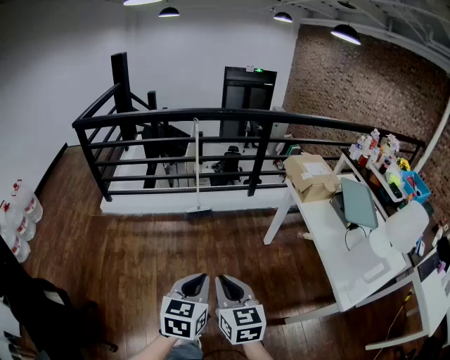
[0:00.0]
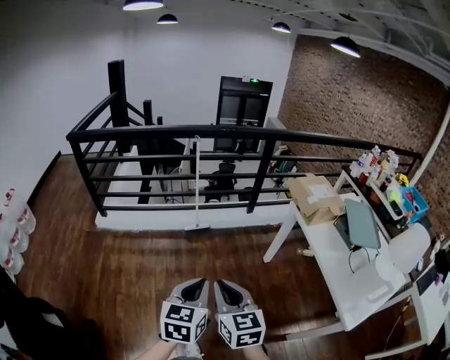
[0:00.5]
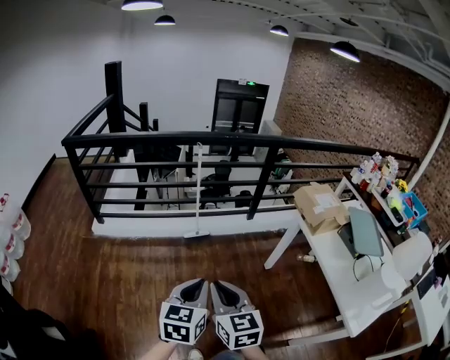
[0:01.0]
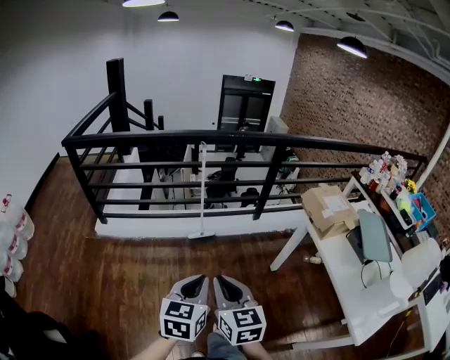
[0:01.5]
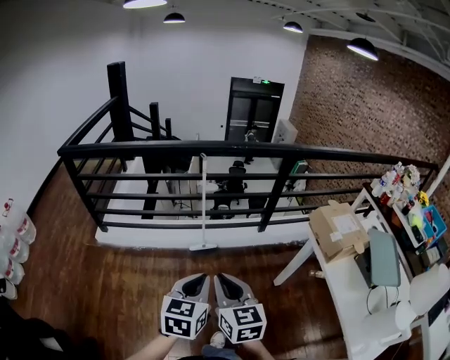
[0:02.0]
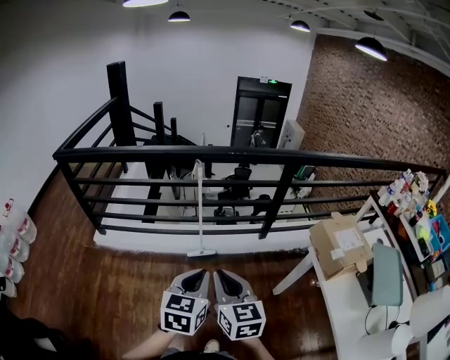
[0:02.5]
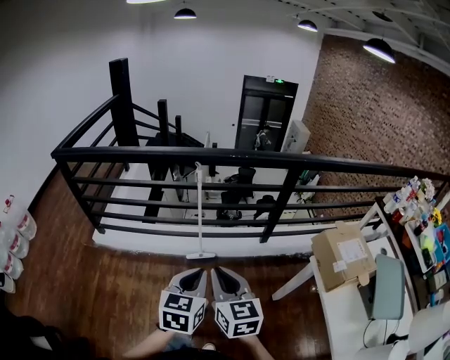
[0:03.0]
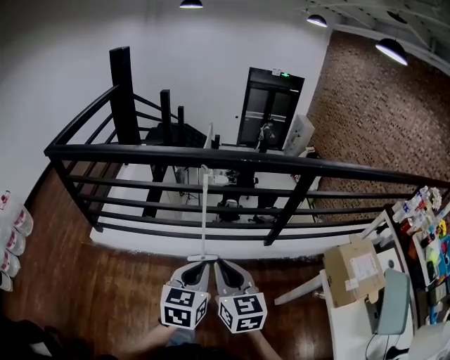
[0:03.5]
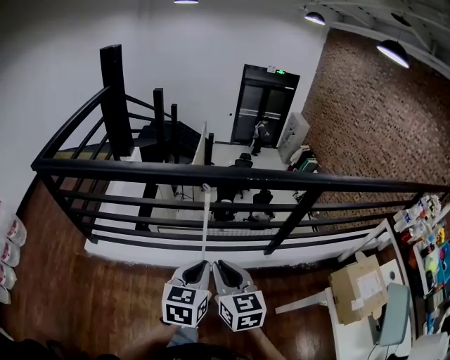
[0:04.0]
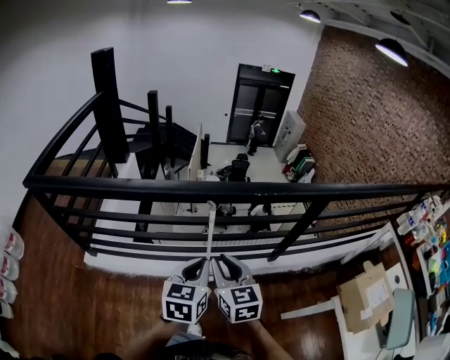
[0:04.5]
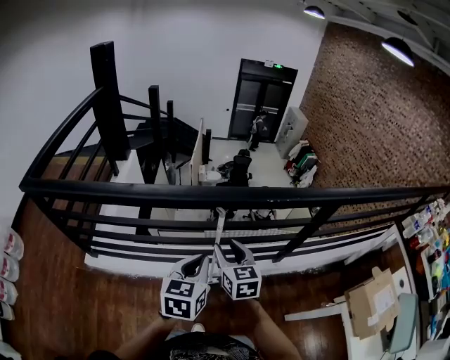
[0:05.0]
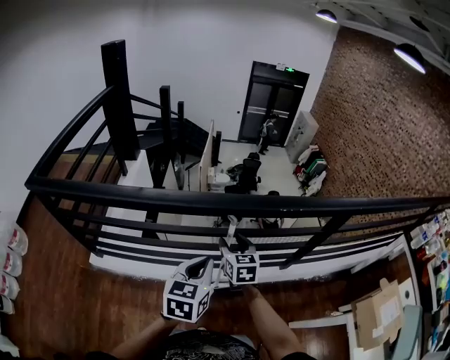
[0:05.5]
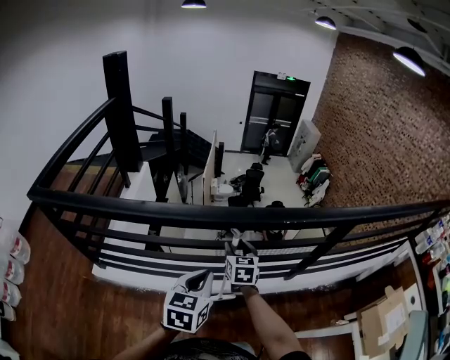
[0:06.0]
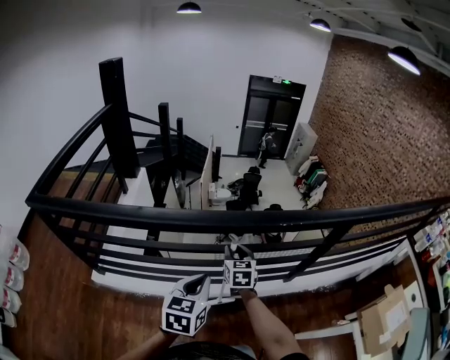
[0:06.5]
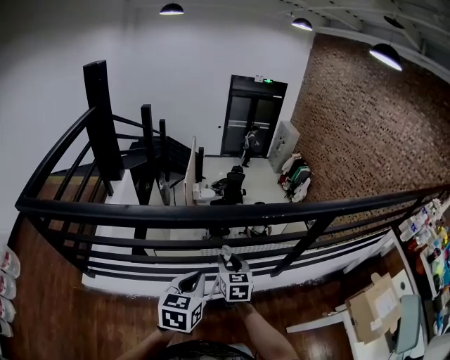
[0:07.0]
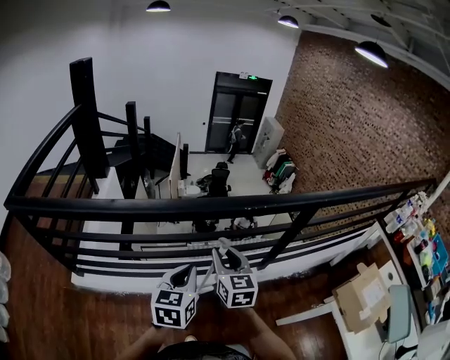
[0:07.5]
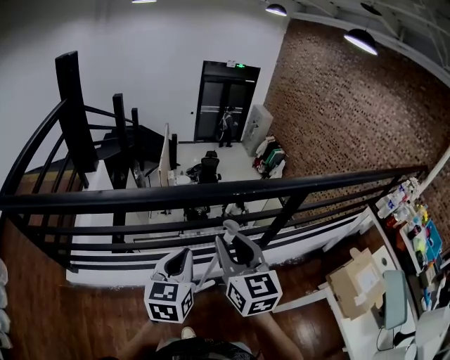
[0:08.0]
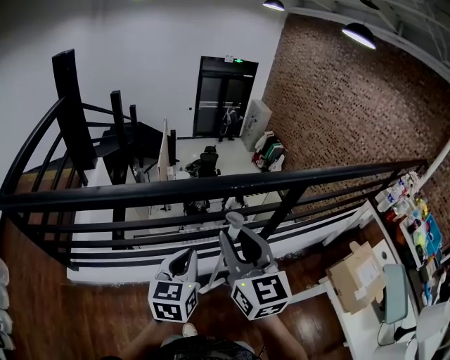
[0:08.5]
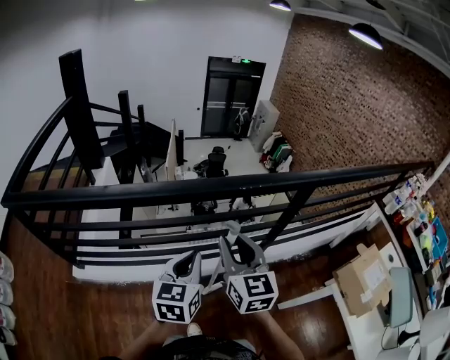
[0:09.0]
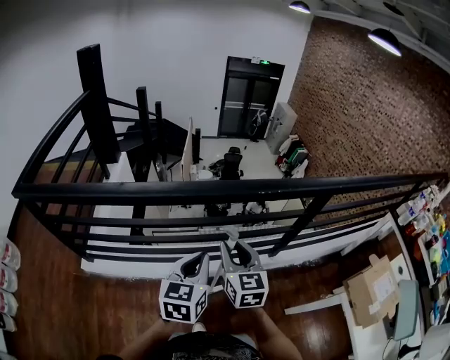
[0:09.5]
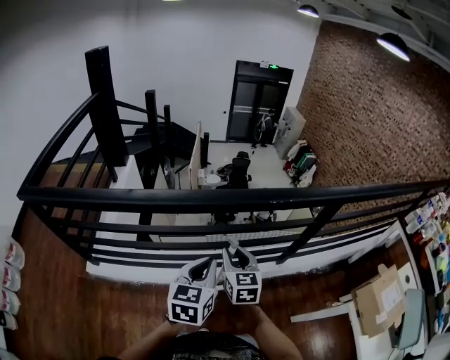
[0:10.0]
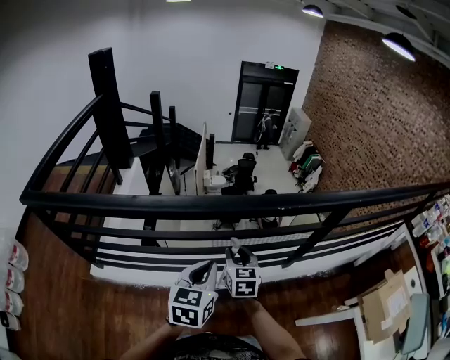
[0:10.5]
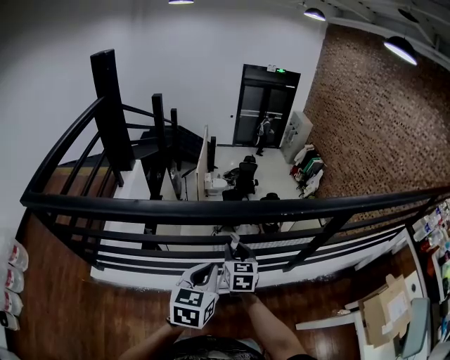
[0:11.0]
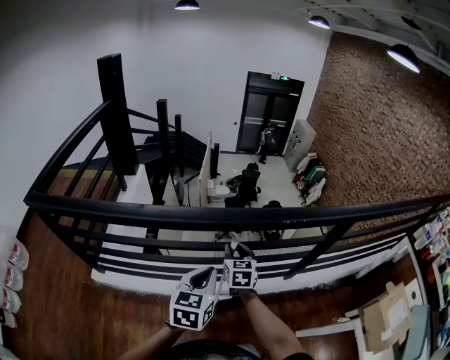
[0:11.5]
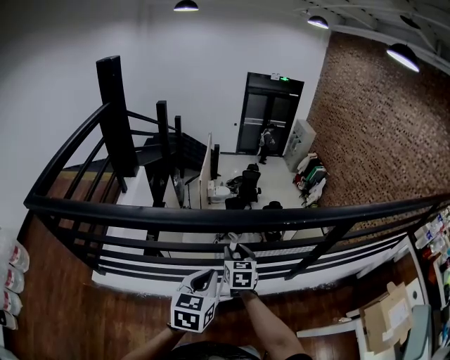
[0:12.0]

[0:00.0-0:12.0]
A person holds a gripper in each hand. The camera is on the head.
0:00.0 to 0:02.0: The grippers both shift forward by about 35 cm.
0:02.0 to 0:04.0: Both grippers move forward, approximately 35 cm.
0:04.0 to 0:06.0: The left gripper heads forward and to the left, covering some 20 cm. Meanwhile the right gripper heads forward and downward, covering about 35 cm, and opens up.
0:06.0 to 0:08.0: The right gripper heads upward and backward, covering some 30 cm, and changes its angle by approximately 20 degrees. Meanwhile the left gripper is displaced upward and to the right by some 10 cm.
0:08.0 to 0:10.0: The right gripper heads downward, covering some 20 cm.
0:10.0 to 0:12.0: The right gripper goes roughly 10 cm forward and downward.

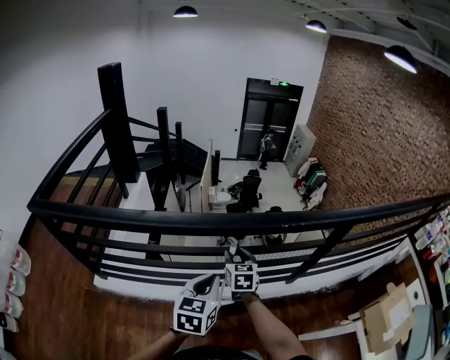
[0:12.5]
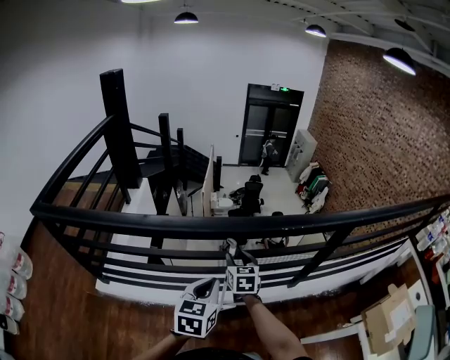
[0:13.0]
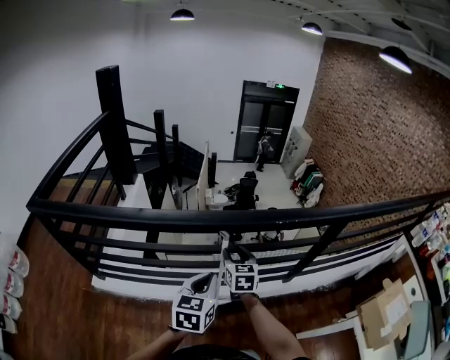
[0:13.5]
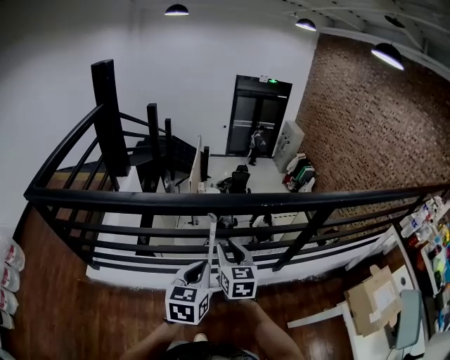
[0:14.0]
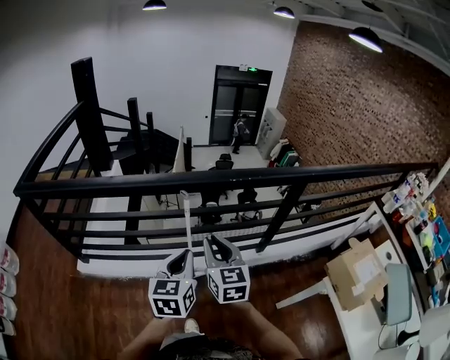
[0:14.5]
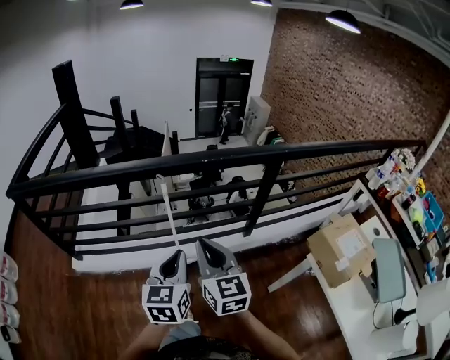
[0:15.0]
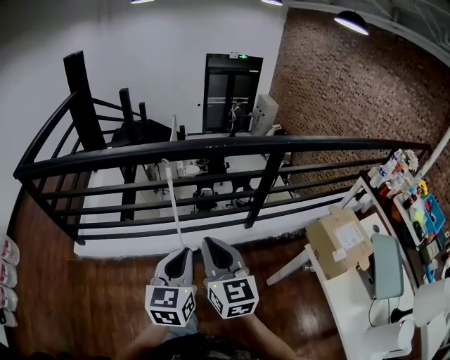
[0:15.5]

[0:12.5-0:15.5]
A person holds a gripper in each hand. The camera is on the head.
0:12.5 to 0:14.0: The right gripper heads backward and upward, covering some 15 cm. Meanwhile the left gripper moves backward, approximately 5 cm.
0:14.0 to 0:15.5: The left gripper goes roughly 25 cm backward and to the right; the right gripper moves backward, some 30 cm, and closes up.

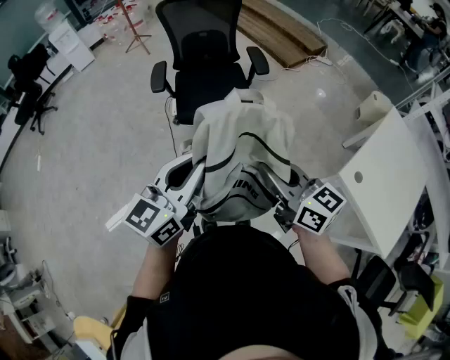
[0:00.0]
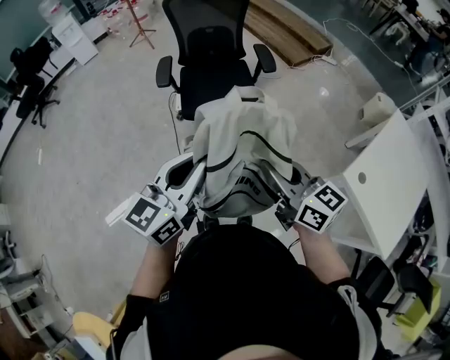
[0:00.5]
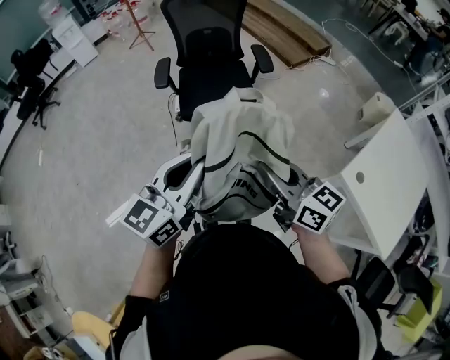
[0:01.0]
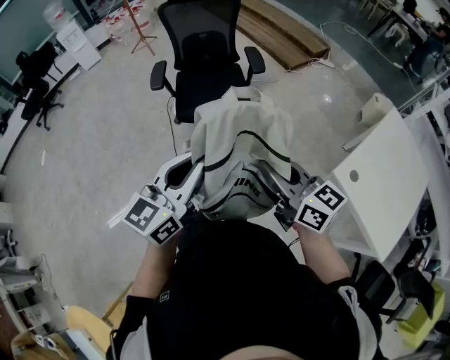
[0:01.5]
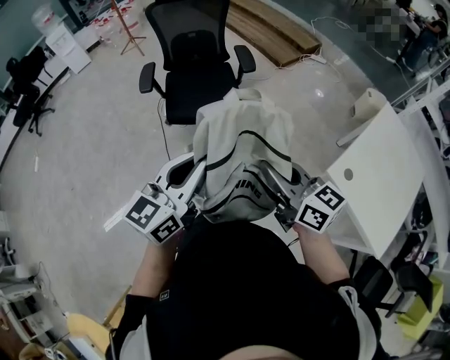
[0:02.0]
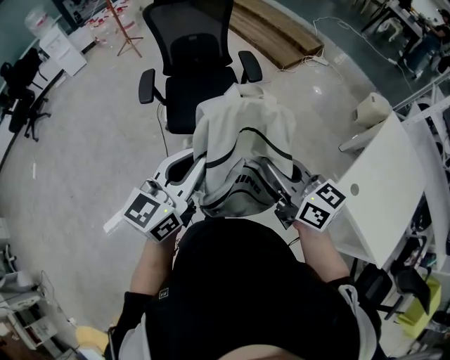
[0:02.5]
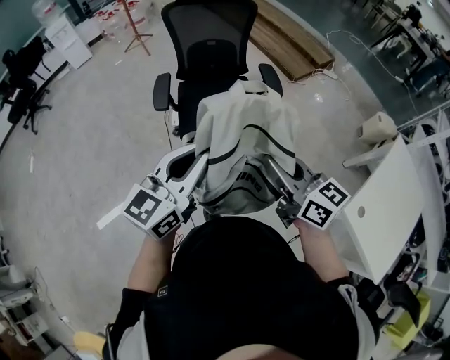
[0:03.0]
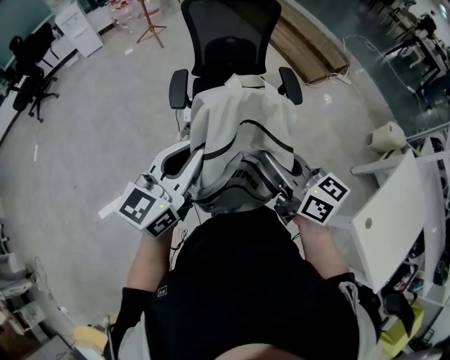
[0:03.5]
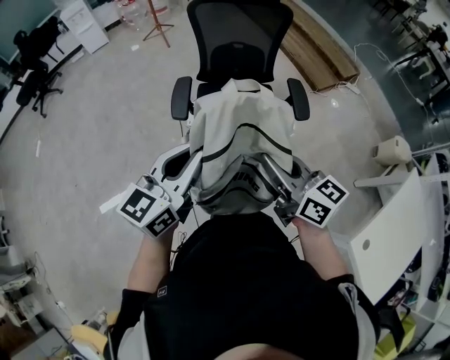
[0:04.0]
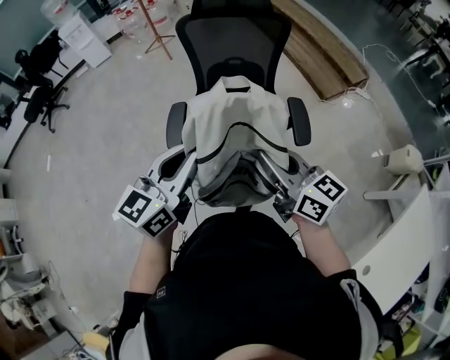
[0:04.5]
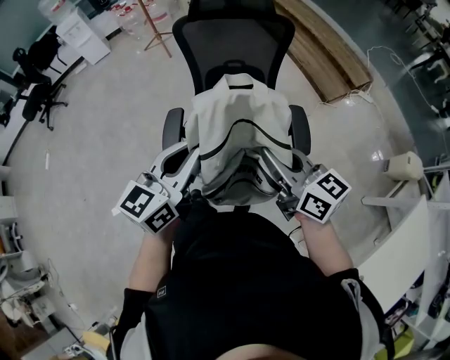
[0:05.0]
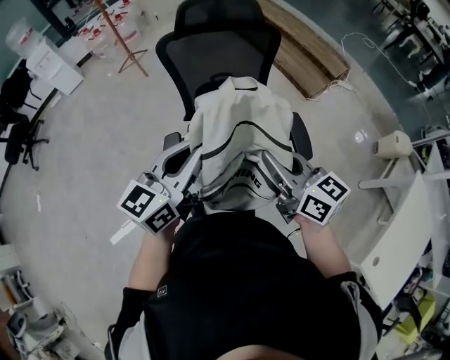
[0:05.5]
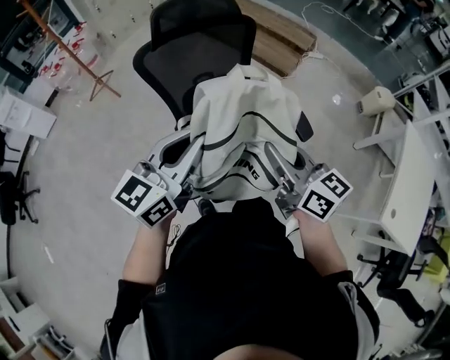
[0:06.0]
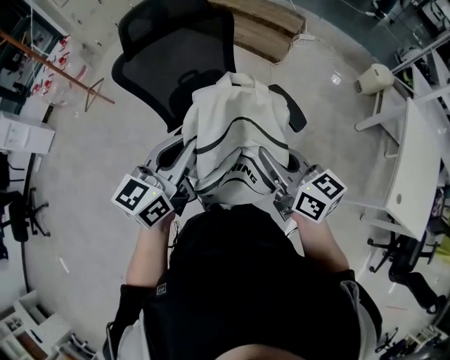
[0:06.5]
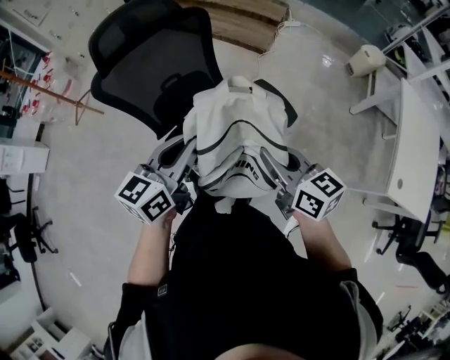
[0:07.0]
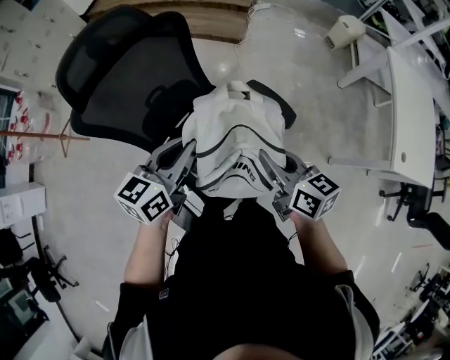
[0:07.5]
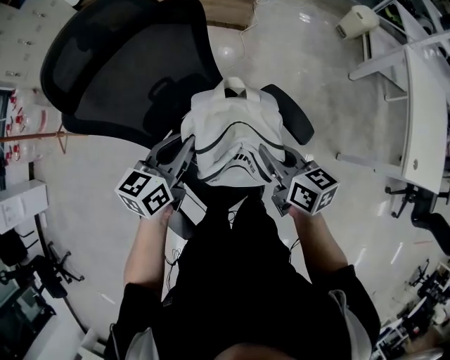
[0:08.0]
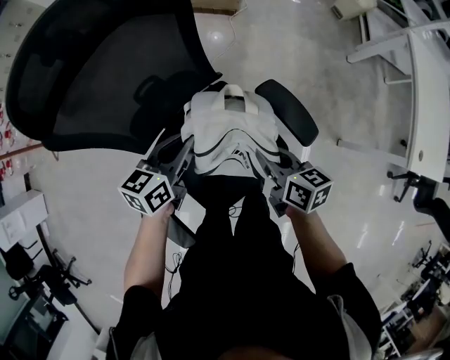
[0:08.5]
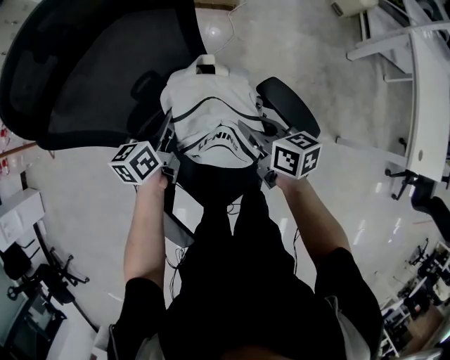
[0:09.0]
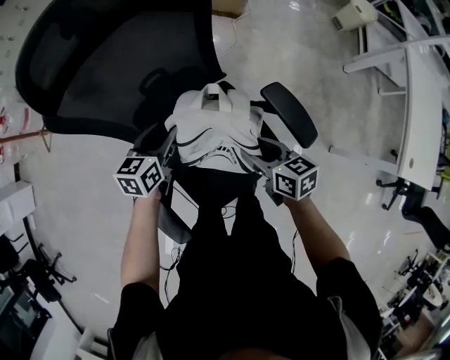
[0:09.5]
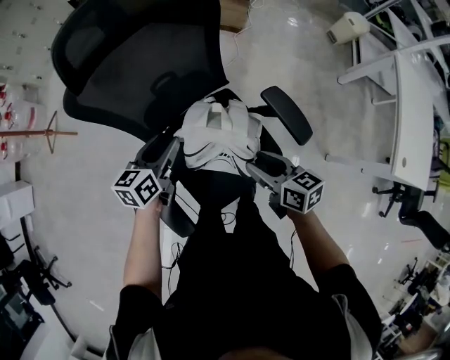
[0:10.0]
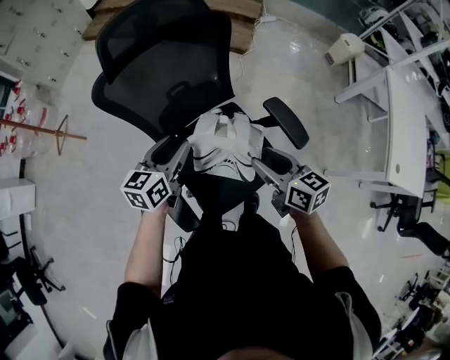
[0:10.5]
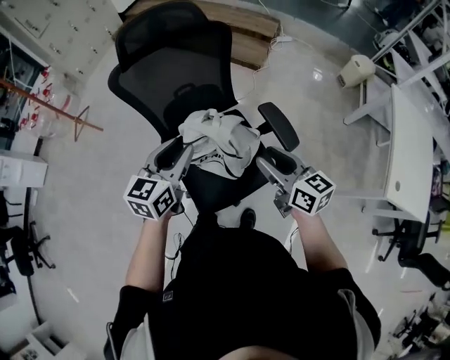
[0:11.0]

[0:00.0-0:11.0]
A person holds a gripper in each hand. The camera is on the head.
0:00.0 to 0:02.0: Both grippers travel together to the right, some 10 cm.
0:02.0 to 0:03.5: The grippers both shift forward and to the left by some 30 cm.
0:03.5 to 0:05.5: Both grippers travel together forward, some 35 cm.
0:05.5 to 0:07.5: The right gripper travels downward by about 10 cm, and changes its angle by approximately 50 degrees, while the left gripper ends up about 25 cm from where it was, and turns by about 40 degrees.
0:07.5 to 0:09.0: Both grippers travel together downward and forward, roughly 25 cm. The left gripper changes its angle by about 20 degrees.
0:09.0 to 0:11.0: The grippers both shift backward and upward by roughly 30 cm. The left gripper rotates approximately 30 degrees, and opens up; the right gripper turns by approximately 20 degrees, and opens up.

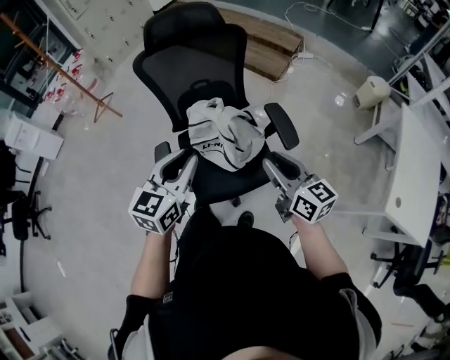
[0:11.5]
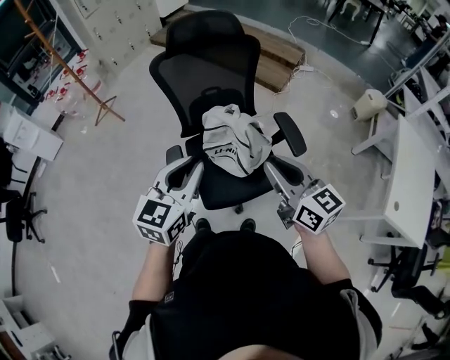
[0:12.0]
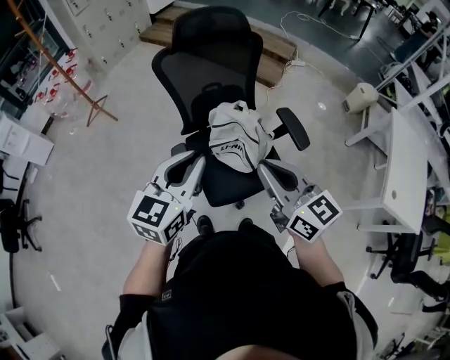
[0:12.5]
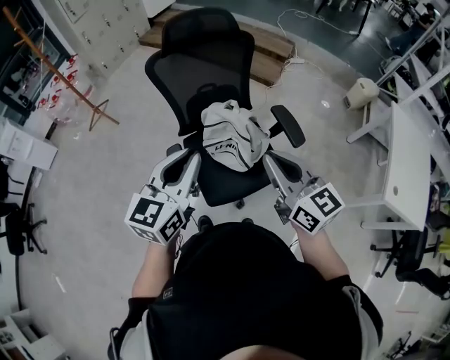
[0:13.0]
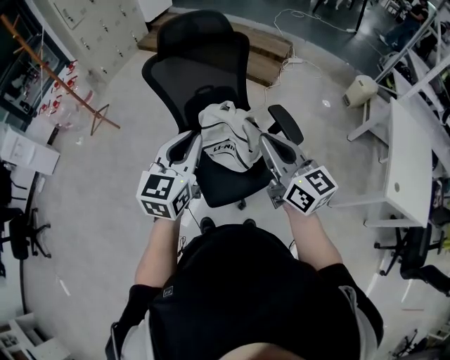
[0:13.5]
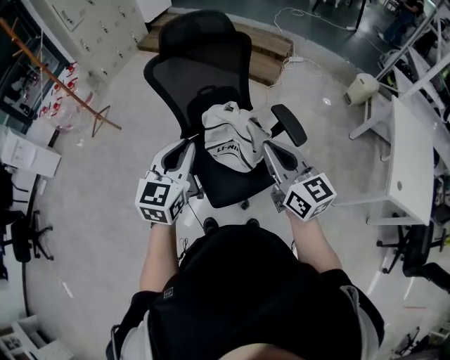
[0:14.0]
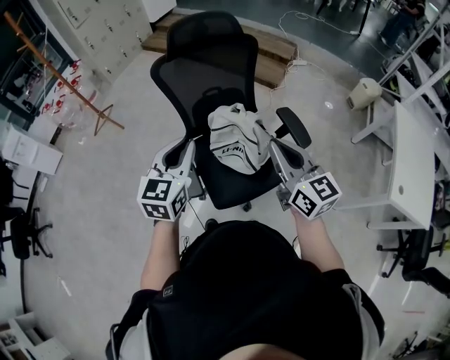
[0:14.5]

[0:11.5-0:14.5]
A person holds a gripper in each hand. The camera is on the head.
0:11.5 to 0:13.0: The grippers both shift to the left and upward by roughly 15 cm. The right gripper closes.
0:13.0 to 0:14.5: The left gripper travels forward by some 5 cm.
